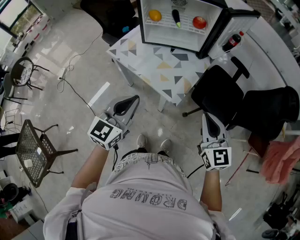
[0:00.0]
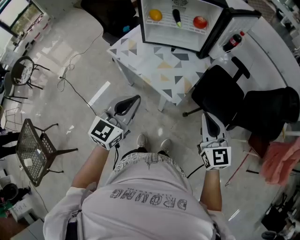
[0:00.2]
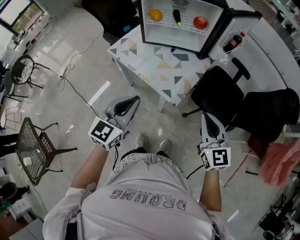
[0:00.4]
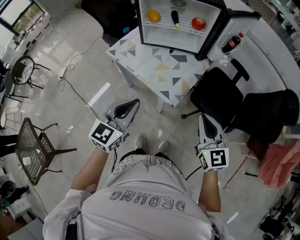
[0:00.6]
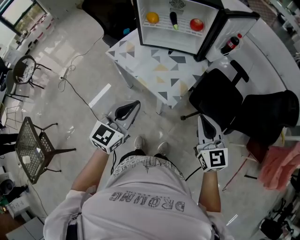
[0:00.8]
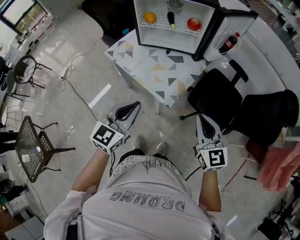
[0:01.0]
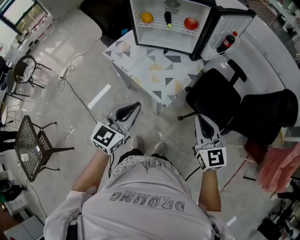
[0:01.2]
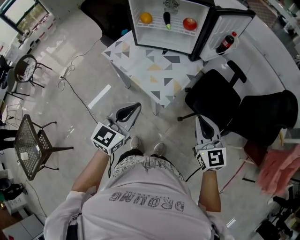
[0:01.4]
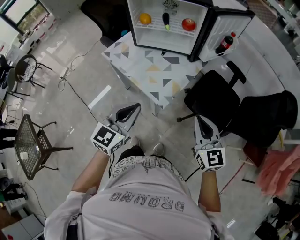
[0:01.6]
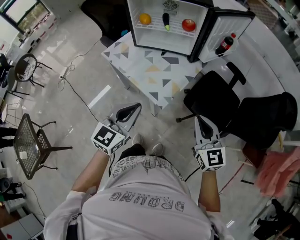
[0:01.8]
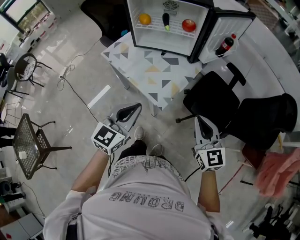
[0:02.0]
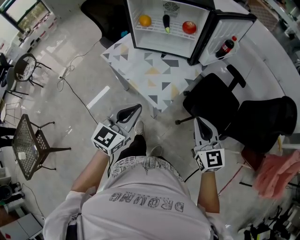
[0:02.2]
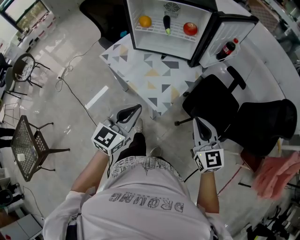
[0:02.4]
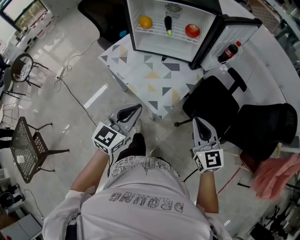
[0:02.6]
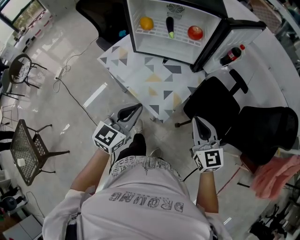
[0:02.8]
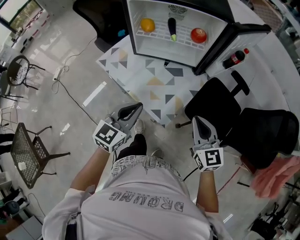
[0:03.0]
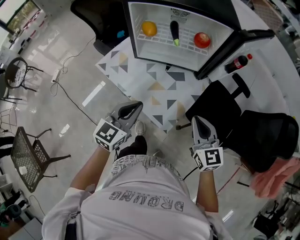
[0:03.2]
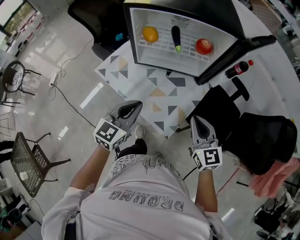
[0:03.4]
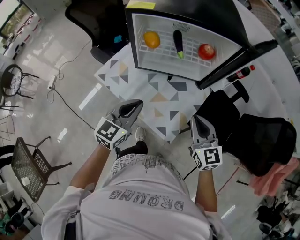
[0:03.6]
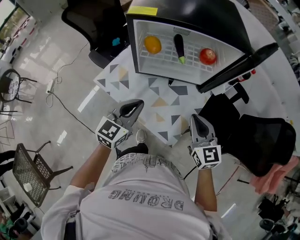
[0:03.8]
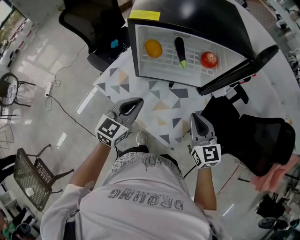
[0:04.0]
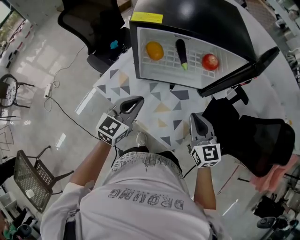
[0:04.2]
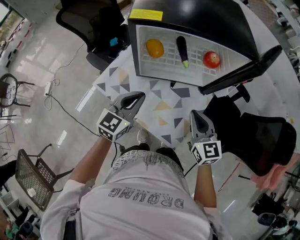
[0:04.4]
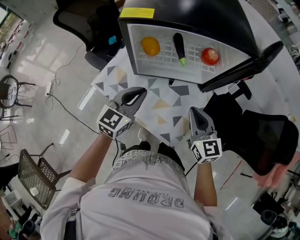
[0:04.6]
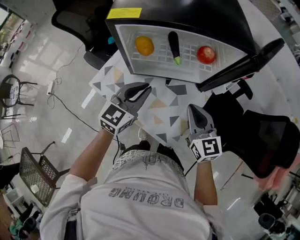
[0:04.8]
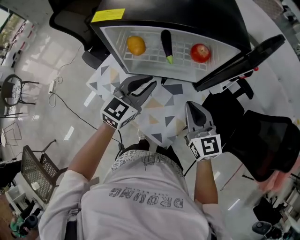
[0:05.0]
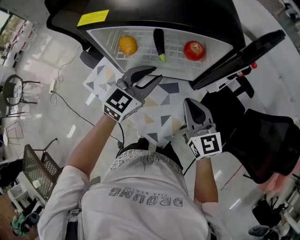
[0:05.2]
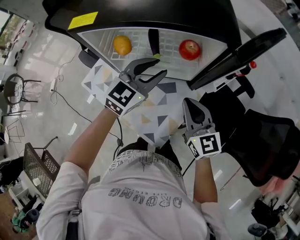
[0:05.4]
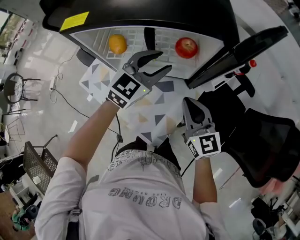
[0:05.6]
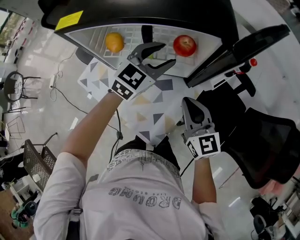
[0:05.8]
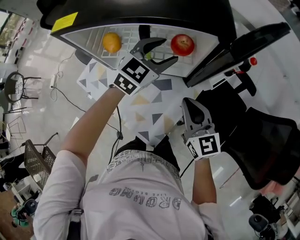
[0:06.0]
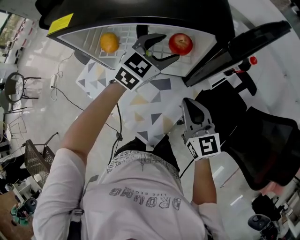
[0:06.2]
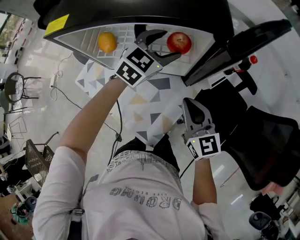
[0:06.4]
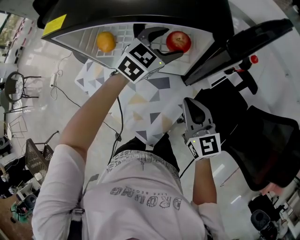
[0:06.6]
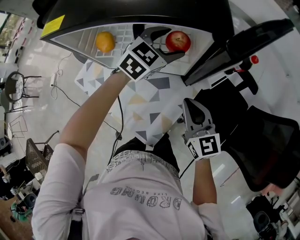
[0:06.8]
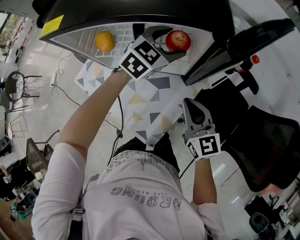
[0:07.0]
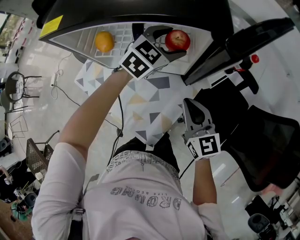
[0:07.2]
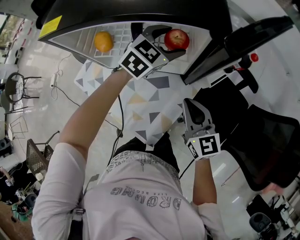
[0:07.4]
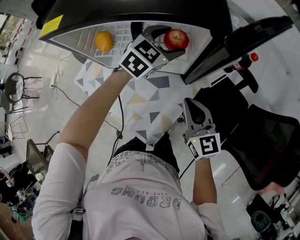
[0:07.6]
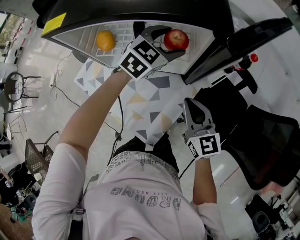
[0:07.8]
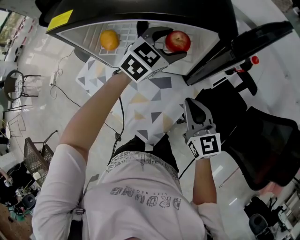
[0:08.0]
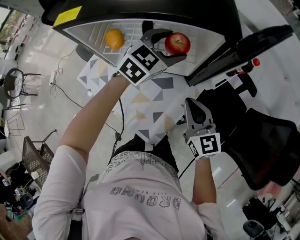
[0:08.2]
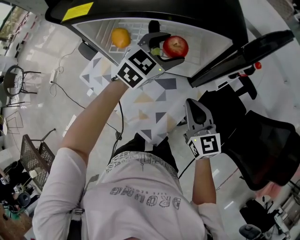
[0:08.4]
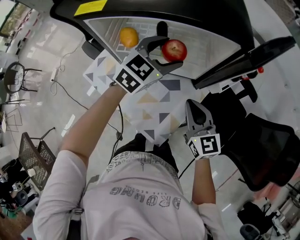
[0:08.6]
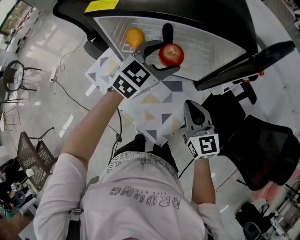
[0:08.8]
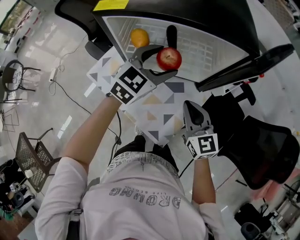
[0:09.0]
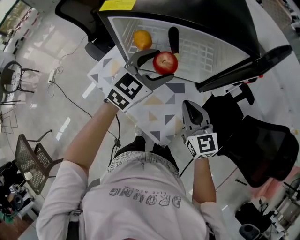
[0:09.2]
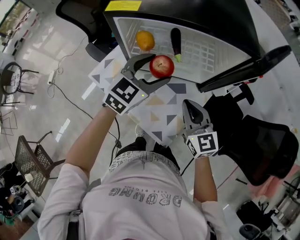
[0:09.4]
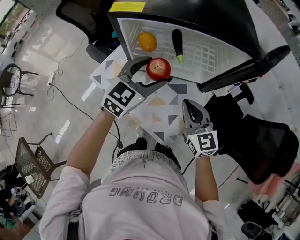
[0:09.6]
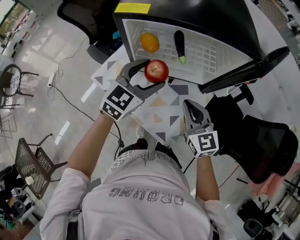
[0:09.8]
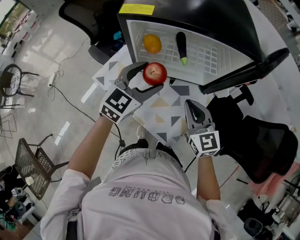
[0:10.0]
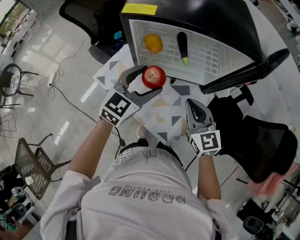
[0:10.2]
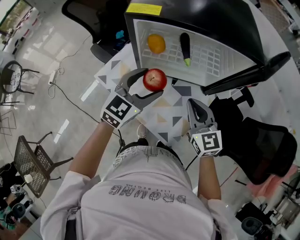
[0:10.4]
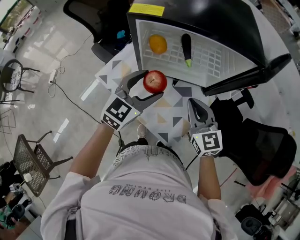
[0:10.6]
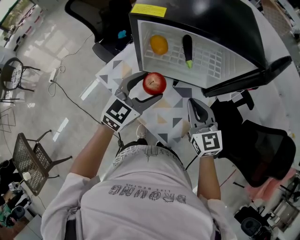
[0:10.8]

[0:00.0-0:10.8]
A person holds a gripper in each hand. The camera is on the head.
0:00.0 to 0:01.6: Both grippers travel together to the right, about 10 cm.
0:01.6 to 0:03.0: The left gripper travels forward by about 15 cm, while the right gripper moves forward and to the left, roughly 15 cm.
0:03.0 to 0:04.6: Both grippers travel together forward and to the left, roughly 20 cm.
0:04.6 to 0:06.2: The right gripper moves to the right and forward, about 10 cm. Meanwhile the left gripper heads to the right and forward, covering about 30 cm, and opens up.
0:06.2 to 0:07.8: There are only small adjustments of the grippers.
0:07.8 to 0:09.2: The right gripper heads to the left, covering some 10 cm; the left gripper goes roughly 20 cm to the left and backward.
0:09.2 to 0:10.8: The right gripper ends up some 5 cm from where it was. The left gripper travels to the left and backward by approximately 10 cm.

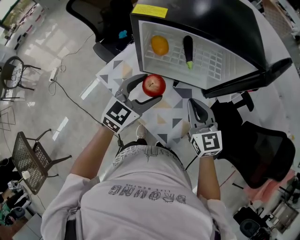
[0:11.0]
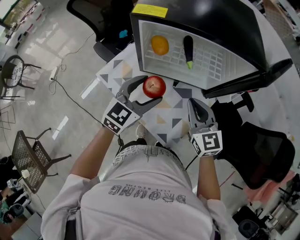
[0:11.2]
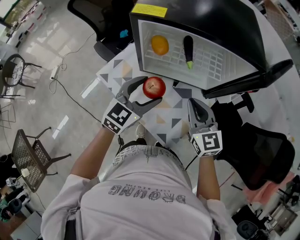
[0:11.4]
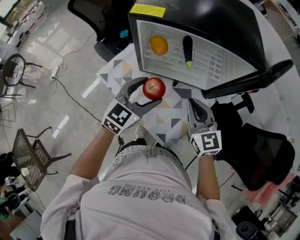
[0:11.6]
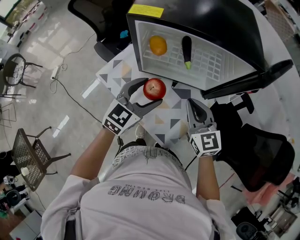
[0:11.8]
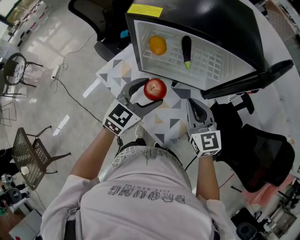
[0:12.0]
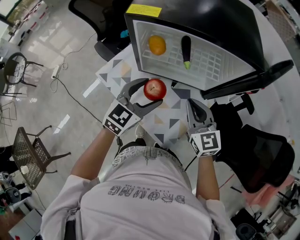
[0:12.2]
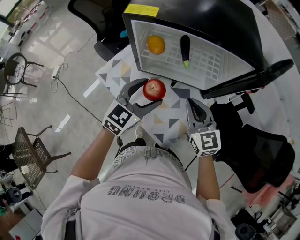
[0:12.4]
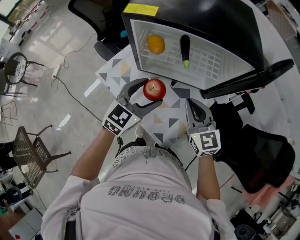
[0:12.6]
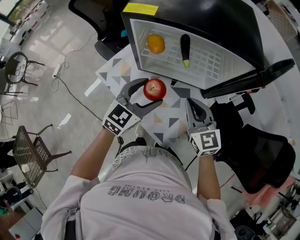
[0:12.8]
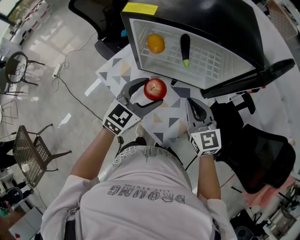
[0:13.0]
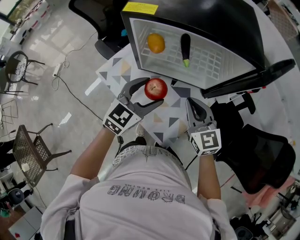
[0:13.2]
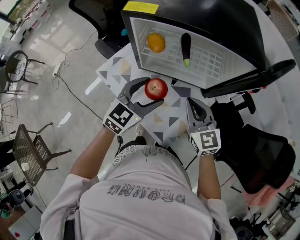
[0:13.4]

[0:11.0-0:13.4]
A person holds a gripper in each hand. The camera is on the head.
0:11.0 to 0:12.2: The grippers move only a little.
0:12.2 to 0:13.4: Both grippers stay put.

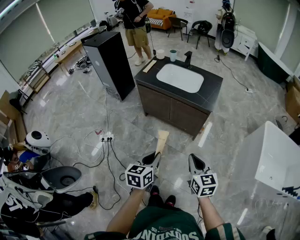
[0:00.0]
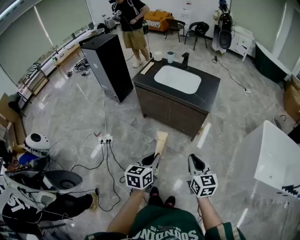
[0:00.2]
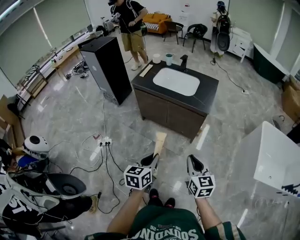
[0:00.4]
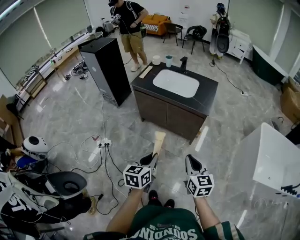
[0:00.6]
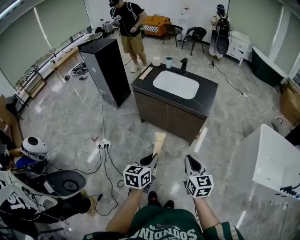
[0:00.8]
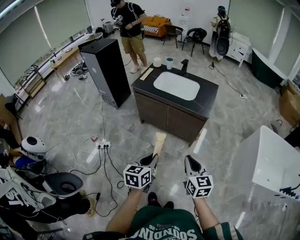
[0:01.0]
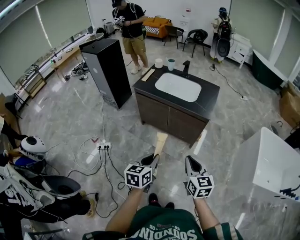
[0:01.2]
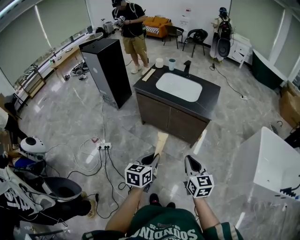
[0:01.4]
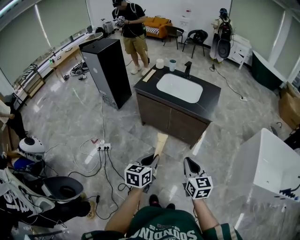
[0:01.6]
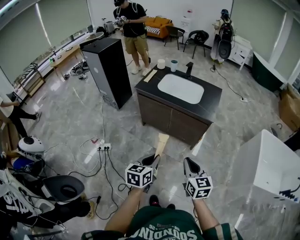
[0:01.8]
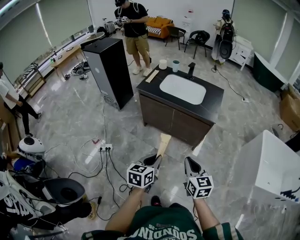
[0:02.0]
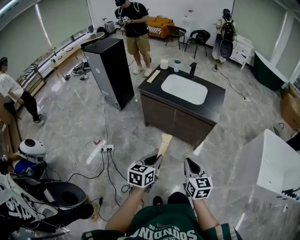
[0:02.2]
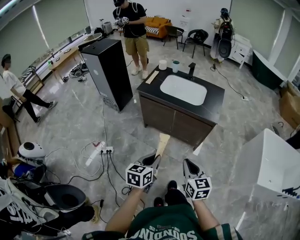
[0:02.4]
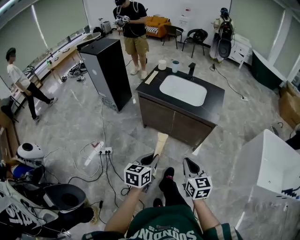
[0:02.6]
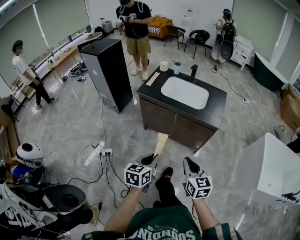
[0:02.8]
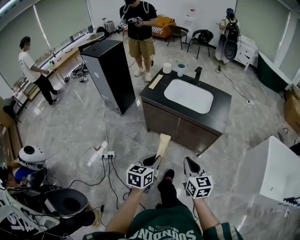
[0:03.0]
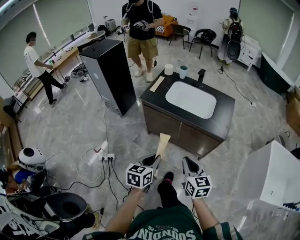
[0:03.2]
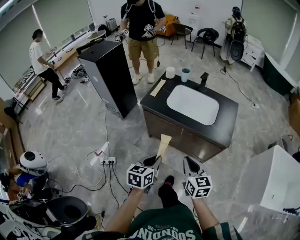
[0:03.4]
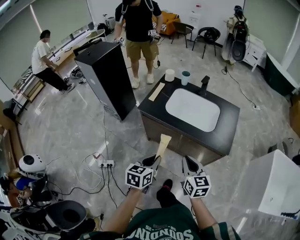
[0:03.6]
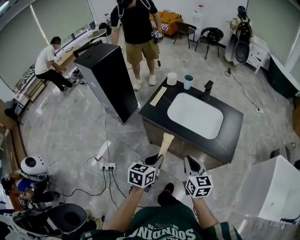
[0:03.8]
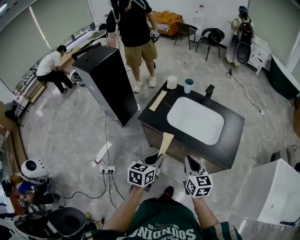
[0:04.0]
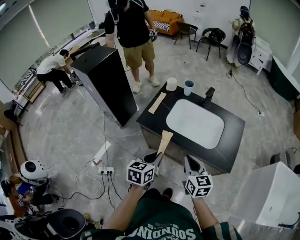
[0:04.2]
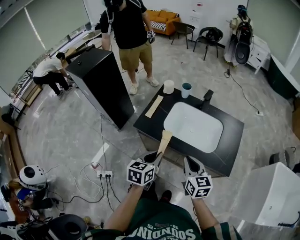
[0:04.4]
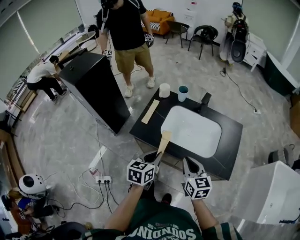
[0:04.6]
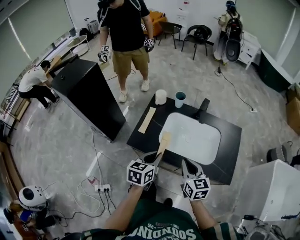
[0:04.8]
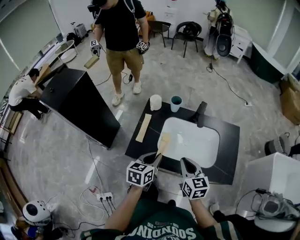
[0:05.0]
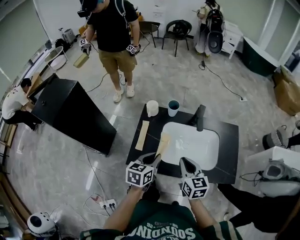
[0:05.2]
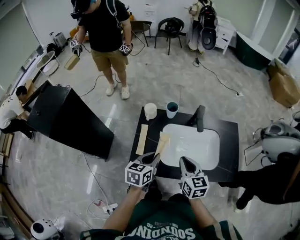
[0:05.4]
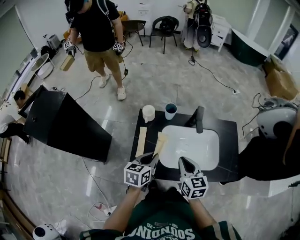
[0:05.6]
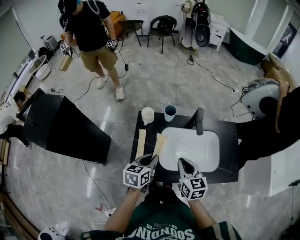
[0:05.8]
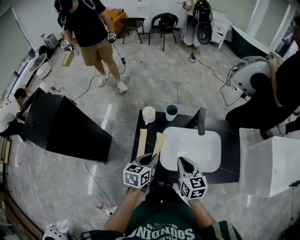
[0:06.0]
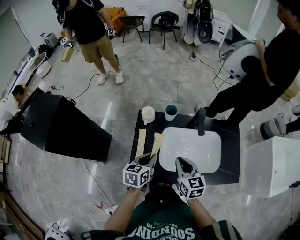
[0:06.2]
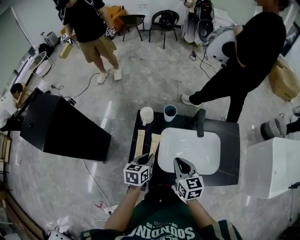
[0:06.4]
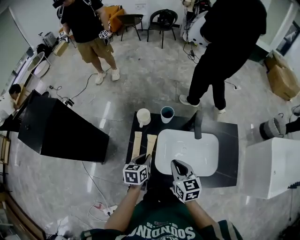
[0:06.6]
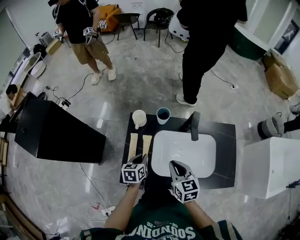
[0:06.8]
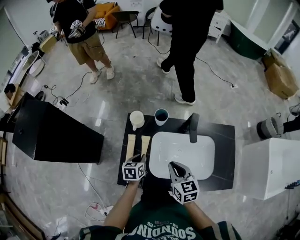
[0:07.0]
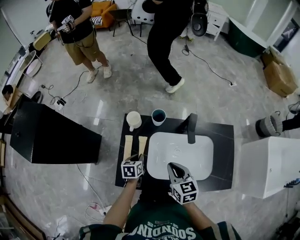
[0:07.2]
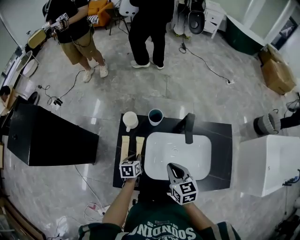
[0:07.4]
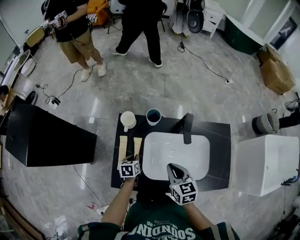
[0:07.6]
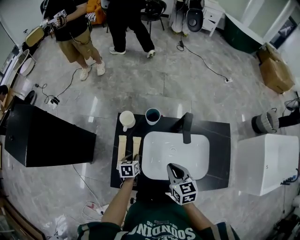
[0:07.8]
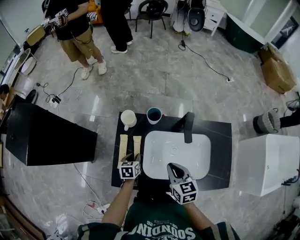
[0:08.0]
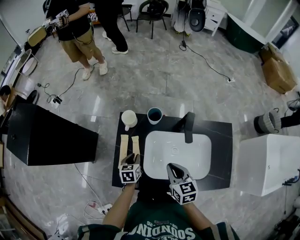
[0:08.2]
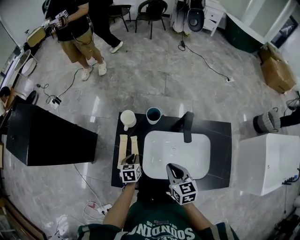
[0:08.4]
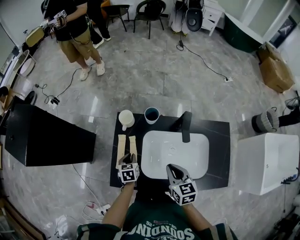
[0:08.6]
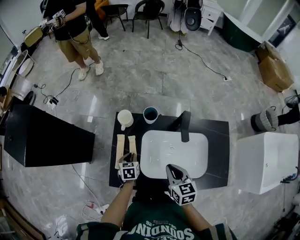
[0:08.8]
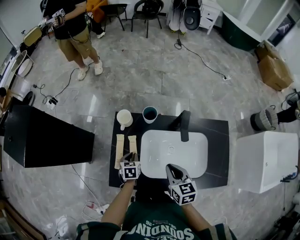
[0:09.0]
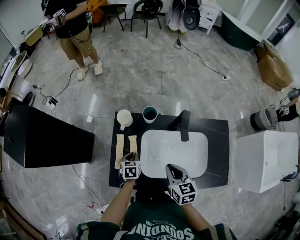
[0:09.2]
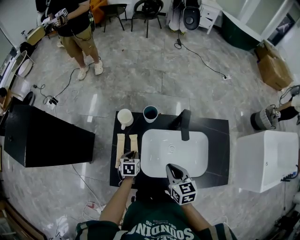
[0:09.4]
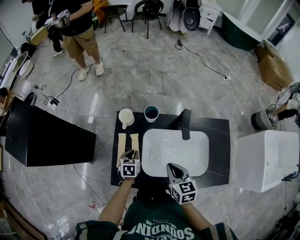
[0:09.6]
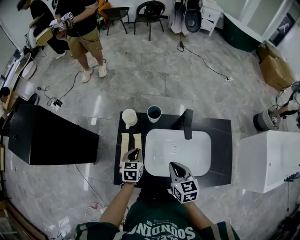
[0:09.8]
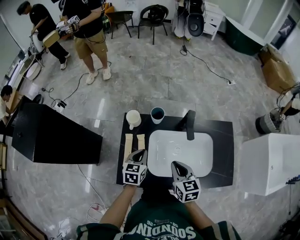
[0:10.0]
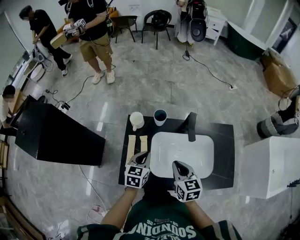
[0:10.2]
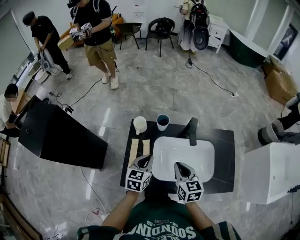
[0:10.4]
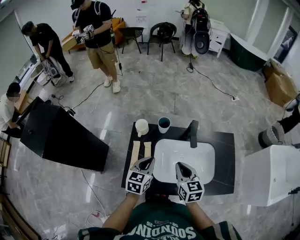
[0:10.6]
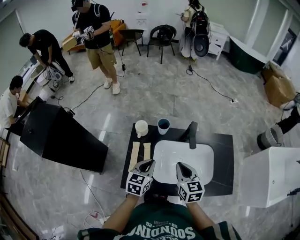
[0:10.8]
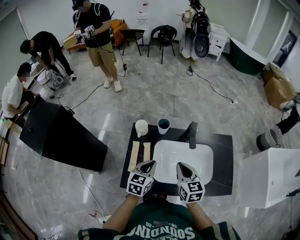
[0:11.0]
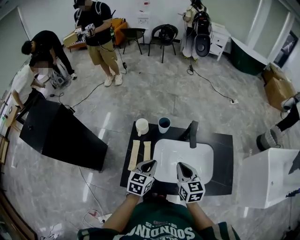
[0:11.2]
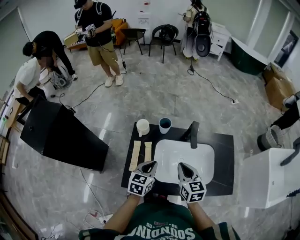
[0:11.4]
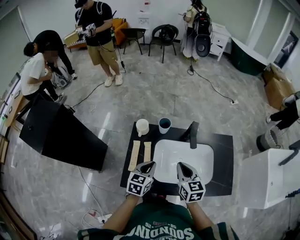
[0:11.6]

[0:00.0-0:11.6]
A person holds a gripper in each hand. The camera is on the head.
0:00.0 to 0:01.4: The right gripper goes approximately 5 cm to the left.
0:01.4 to 0:02.8: The right gripper heads to the left and forward, covering roughly 10 cm, while the left gripper shifts approximately 10 cm forward and to the left.
0:02.8 to 0:04.4: The pair of grippers is taken forward, some 40 cm.
0:04.4 to 0:05.8: Both grippers travel together forward and to the left, about 30 cm. The right gripper swivels about 20 degrees; the left gripper swivels about 20 degrees.
0:05.8 to 0:07.2: The right gripper goes roughly 5 cm forward. The left gripper moves downward and forward, roughly 20 cm, and rotates approximately 20 degrees.
0:07.2 to 0:08.8: The grippers make only small movements.
0:08.8 to 0:10.2: The left gripper goes about 15 cm upward, and rotates approximately 30 degrees.
0:10.2 to 0:11.6: The grippers stay close to where they were, moving slightly.
